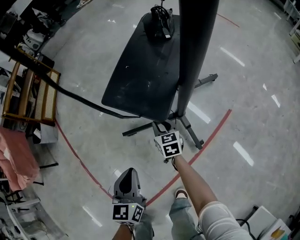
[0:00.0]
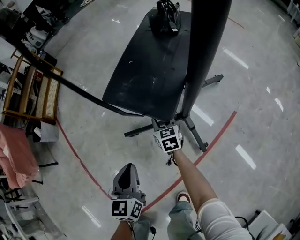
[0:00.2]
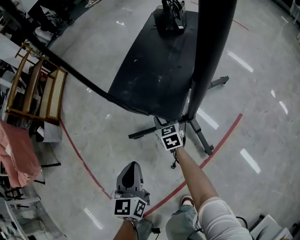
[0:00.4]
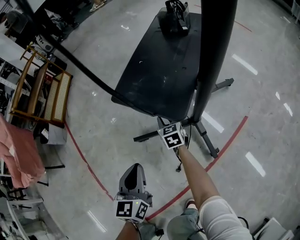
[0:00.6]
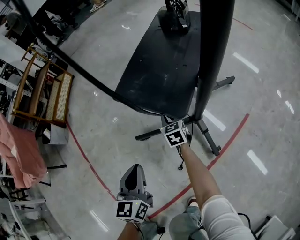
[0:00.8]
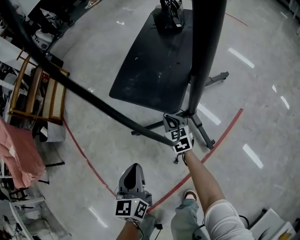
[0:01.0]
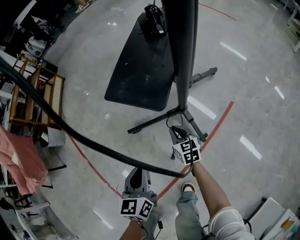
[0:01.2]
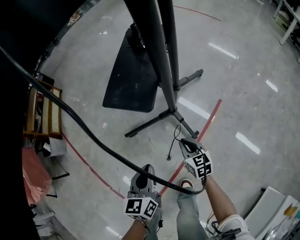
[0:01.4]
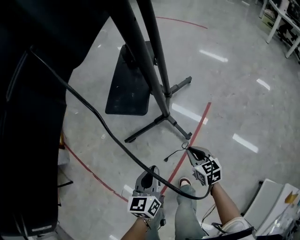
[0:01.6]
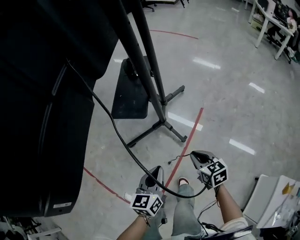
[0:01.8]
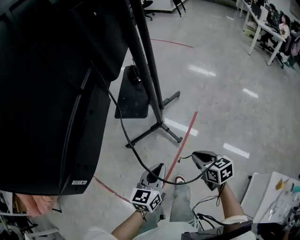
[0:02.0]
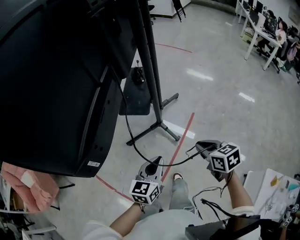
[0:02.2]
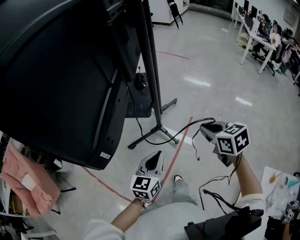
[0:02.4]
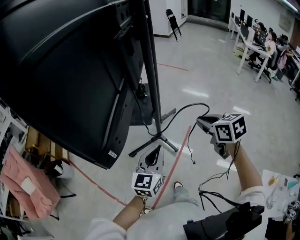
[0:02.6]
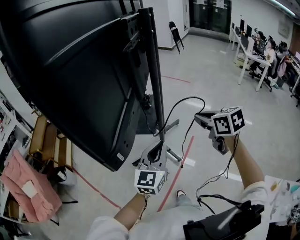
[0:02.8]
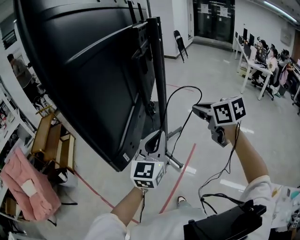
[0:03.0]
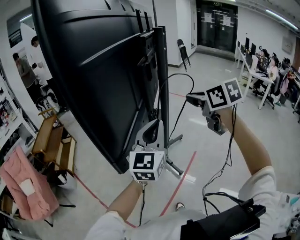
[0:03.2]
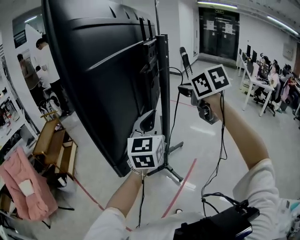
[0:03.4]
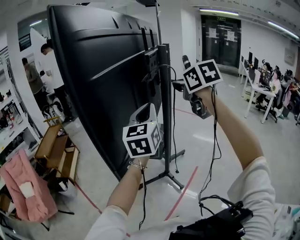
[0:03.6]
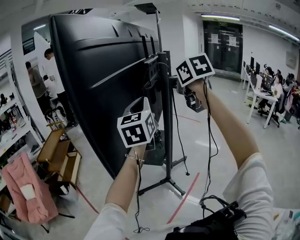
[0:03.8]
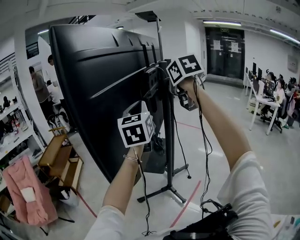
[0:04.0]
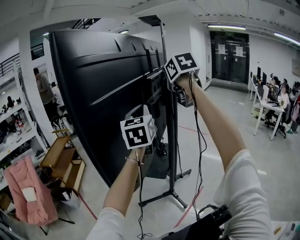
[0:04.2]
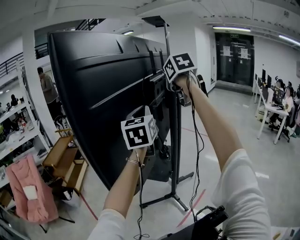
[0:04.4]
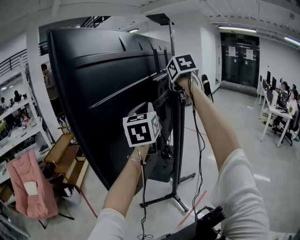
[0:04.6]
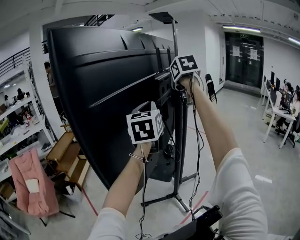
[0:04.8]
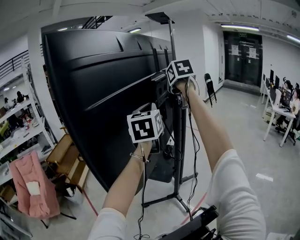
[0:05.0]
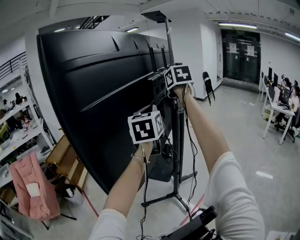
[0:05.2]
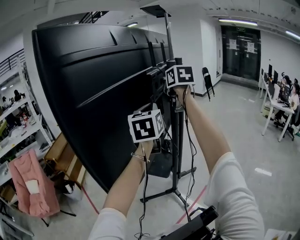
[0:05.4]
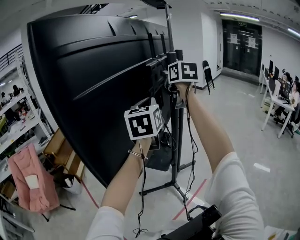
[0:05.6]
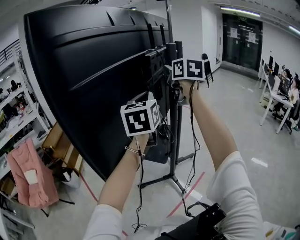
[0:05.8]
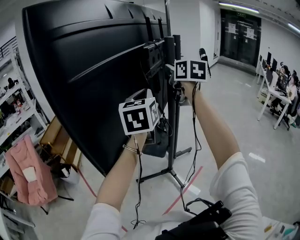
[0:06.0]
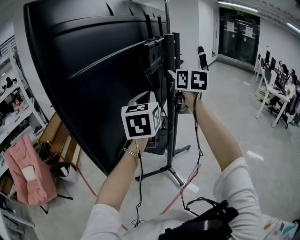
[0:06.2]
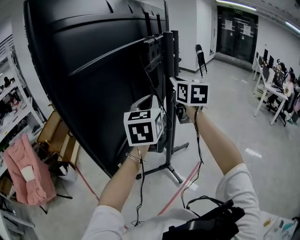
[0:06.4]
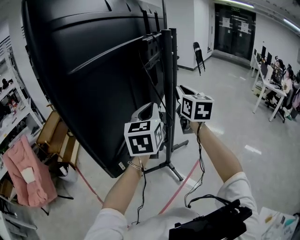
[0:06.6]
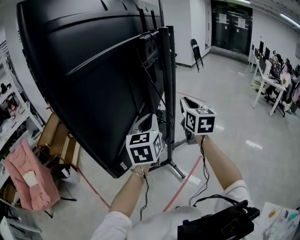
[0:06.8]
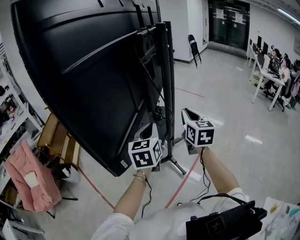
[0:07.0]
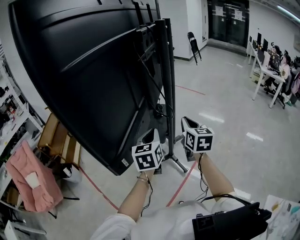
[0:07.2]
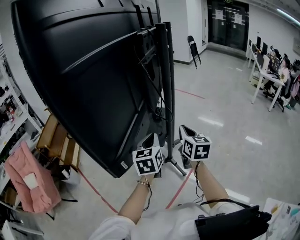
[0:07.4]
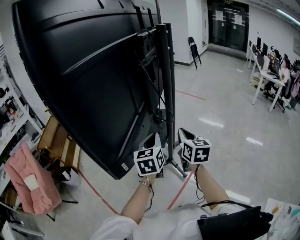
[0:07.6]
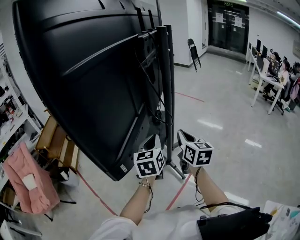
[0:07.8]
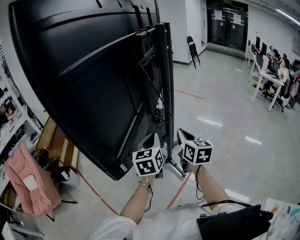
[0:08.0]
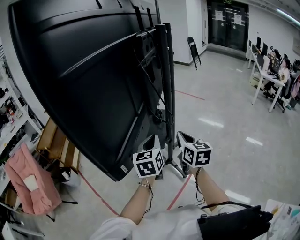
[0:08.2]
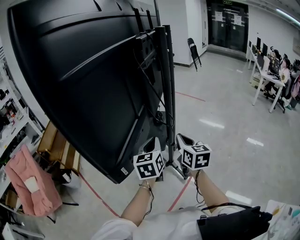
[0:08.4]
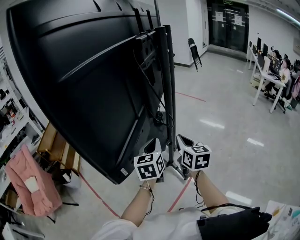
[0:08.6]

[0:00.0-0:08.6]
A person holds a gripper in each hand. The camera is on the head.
0:00.0 to 0:01.4: The right gripper goes approximately 20 cm backward, upward and to the right; the left gripper goes approximately 10 cm to the right, upward and backward.
0:01.4 to 0:02.8: The grippers both shift upward by some 60 cm. The left gripper rotates some 40 degrees.
0:02.8 to 0:04.4: The grippers both shift upward and forward by about 40 cm. The left gripper turns by about 30 degrees.
0:04.4 to 0:05.8: The left gripper changes place by roughly 5 cm. The right gripper shifts about 5 cm downward, and turns by about 20 degrees.
0:05.8 to 0:07.2: The right gripper is displaced downward and backward by about 35 cm. Meanwhile the left gripper moves downward, roughly 25 cm.
0:07.2 to 0:08.6: There are only small adjustments of the grippers.

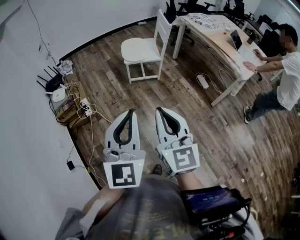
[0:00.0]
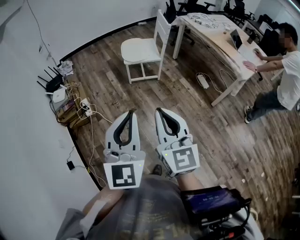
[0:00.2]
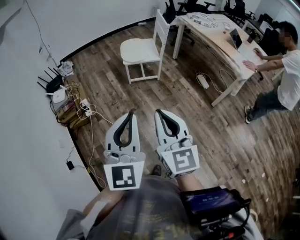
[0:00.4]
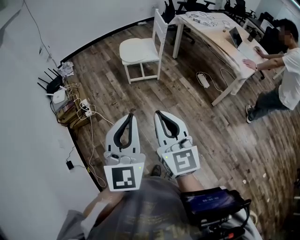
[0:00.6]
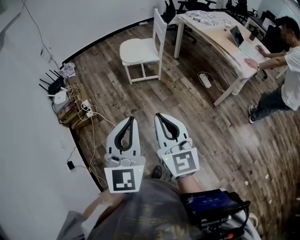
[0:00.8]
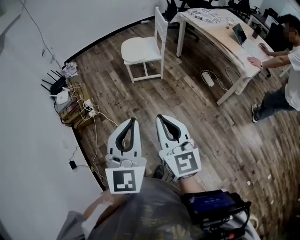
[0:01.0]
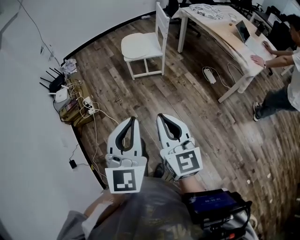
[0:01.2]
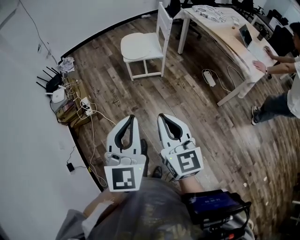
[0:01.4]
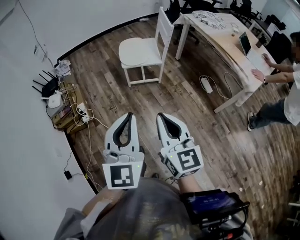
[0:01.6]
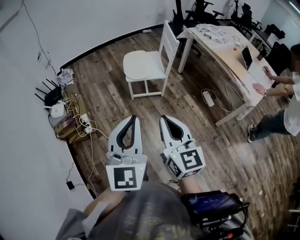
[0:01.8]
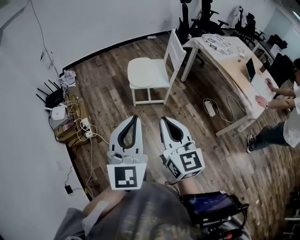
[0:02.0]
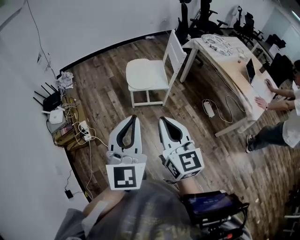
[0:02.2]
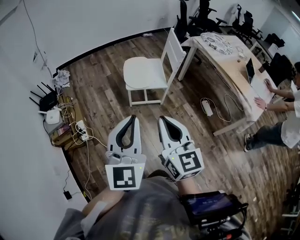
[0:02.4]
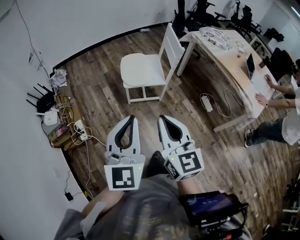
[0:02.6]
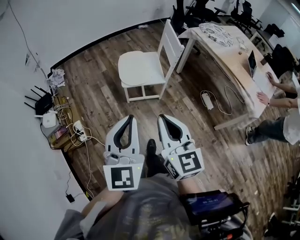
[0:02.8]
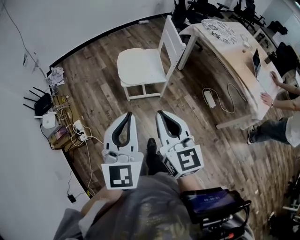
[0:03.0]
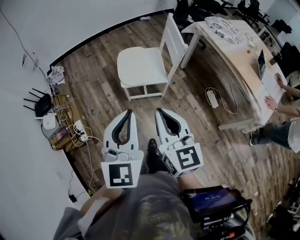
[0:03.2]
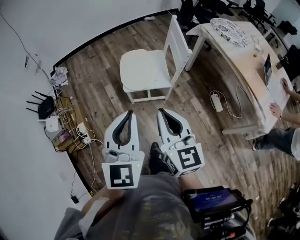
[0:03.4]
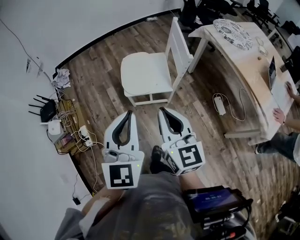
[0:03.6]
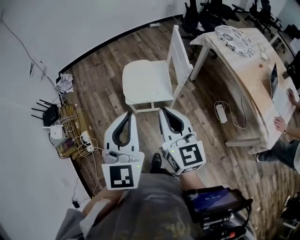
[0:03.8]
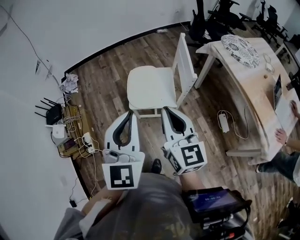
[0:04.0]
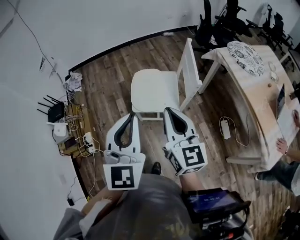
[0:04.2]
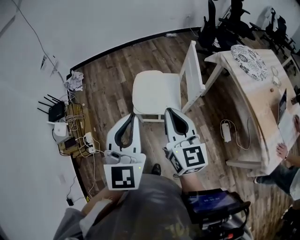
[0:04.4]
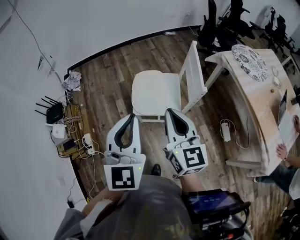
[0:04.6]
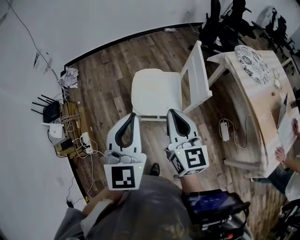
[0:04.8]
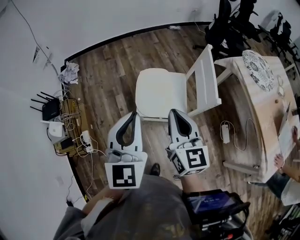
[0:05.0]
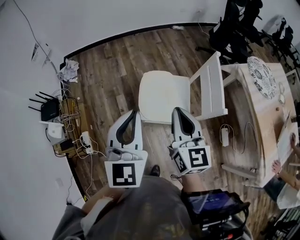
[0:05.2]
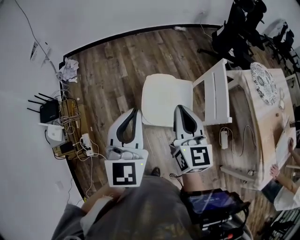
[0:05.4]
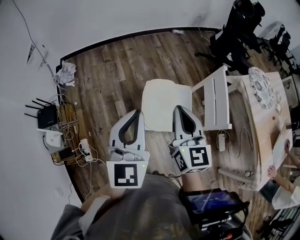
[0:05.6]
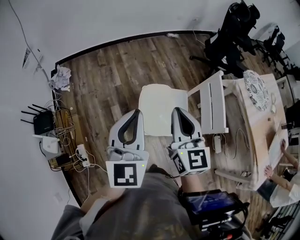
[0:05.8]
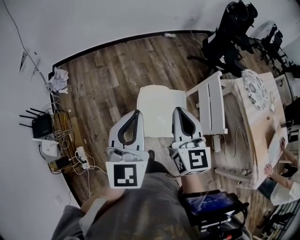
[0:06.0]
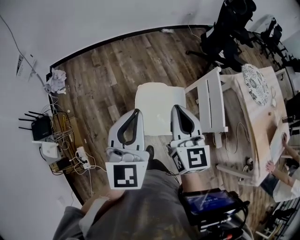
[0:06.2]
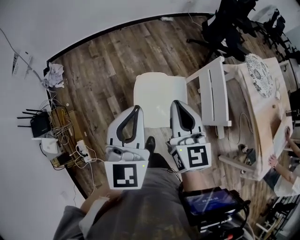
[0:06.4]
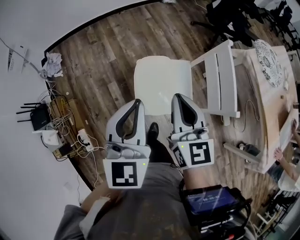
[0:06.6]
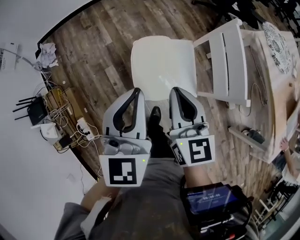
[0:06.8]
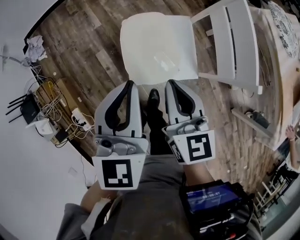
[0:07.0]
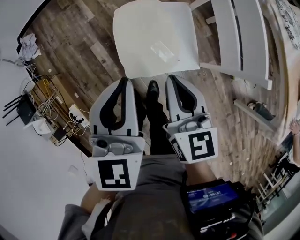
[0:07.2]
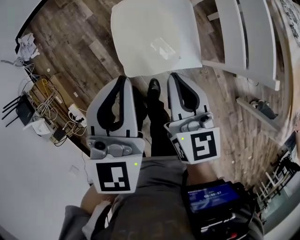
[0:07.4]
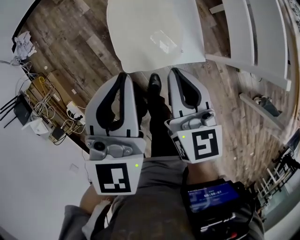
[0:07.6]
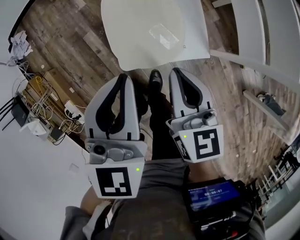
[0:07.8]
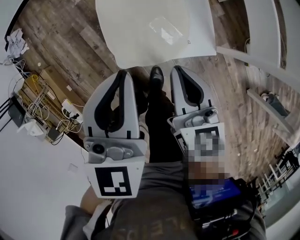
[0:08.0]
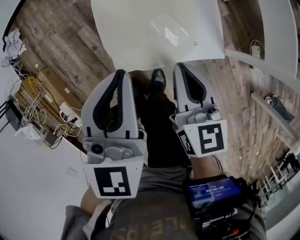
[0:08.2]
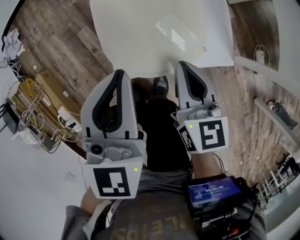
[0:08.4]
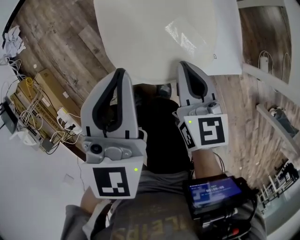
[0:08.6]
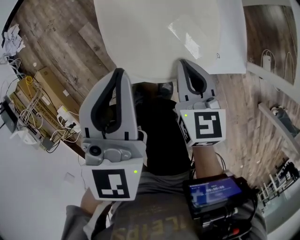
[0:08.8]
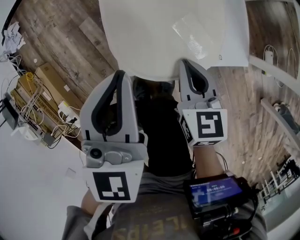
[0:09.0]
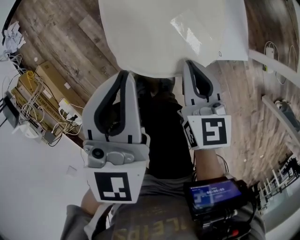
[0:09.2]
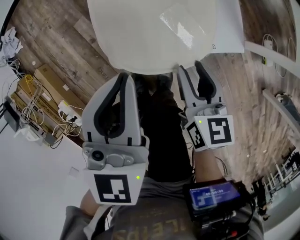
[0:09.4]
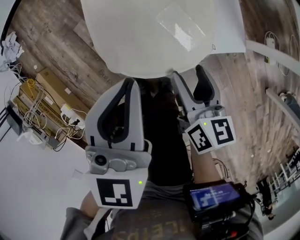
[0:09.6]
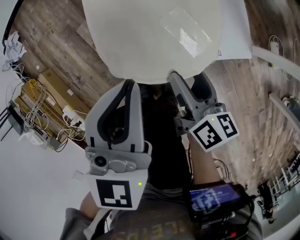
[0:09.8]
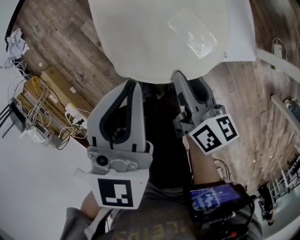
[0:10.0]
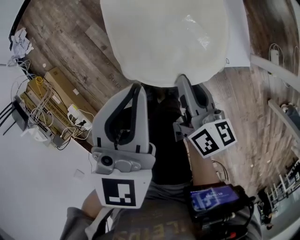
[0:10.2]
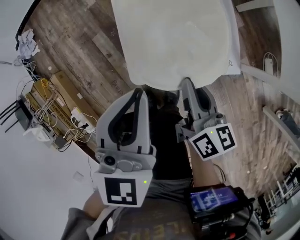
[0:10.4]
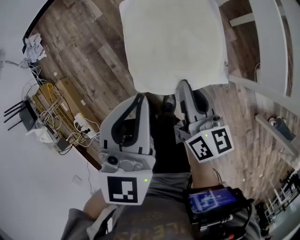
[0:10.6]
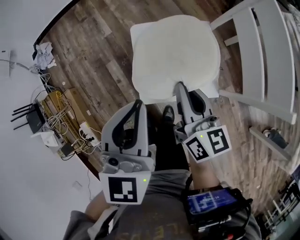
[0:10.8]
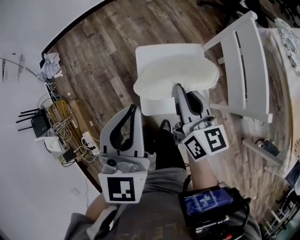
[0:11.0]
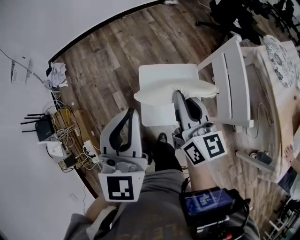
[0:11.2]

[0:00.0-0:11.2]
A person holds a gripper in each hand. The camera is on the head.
0:00.0 to 0:01.6: The left gripper moves forward, some 10 cm. The right gripper travels forward, to the right and downward by approximately 15 cm.
0:01.6 to 0:03.2: The grippers both shift forward by some 30 cm.
0:03.2 to 0:04.8: Both grippers move forward, approximately 20 cm.
0:04.8 to 0:06.4: The grippers both shift forward and to the left by about 20 cm.
0:06.4 to 0:08.0: The two grippers go some 30 cm downward. The right gripper rotates roughly 20 degrees.
0:08.0 to 0:09.6: The grippers both shift downward by about 15 cm. The right gripper rotates roughly 20 degrees, and opens its fingers.
0:09.6 to 0:11.2: Both grippers move upward, about 35 cm. The right gripper rotates approximately 30 degrees, and closes; the left gripper turns by some 20 degrees.

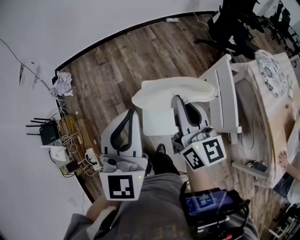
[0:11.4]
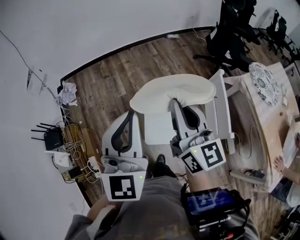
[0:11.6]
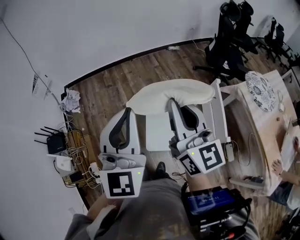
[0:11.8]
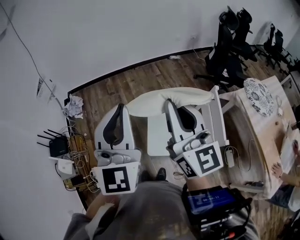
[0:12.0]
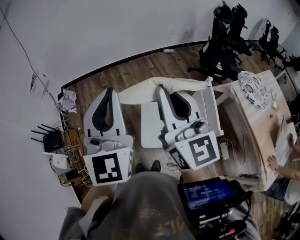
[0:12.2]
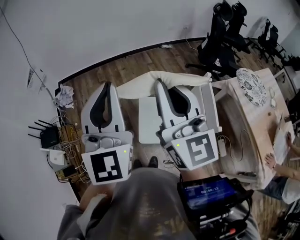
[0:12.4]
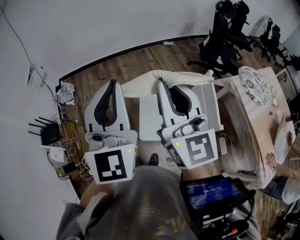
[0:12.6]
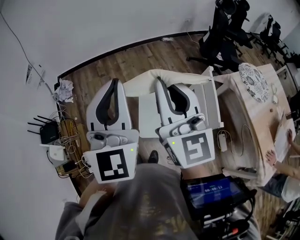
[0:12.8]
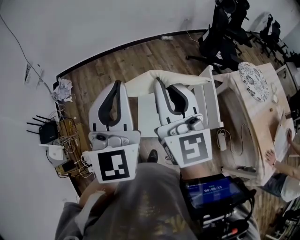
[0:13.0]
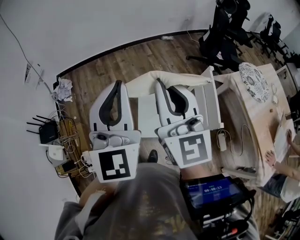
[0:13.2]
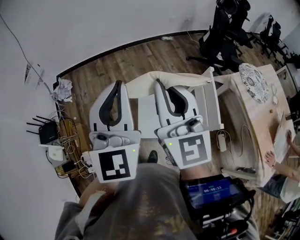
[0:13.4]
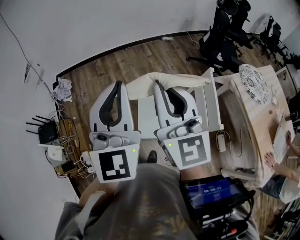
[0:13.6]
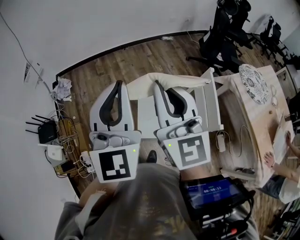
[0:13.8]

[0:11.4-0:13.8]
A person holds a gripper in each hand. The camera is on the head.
0:11.4 to 0:12.6: Both grippers move upward, some 20 cm. The right gripper turns by some 30 degrees.
0:12.6 to 0:13.8: There are only small adjustments of the grippers.

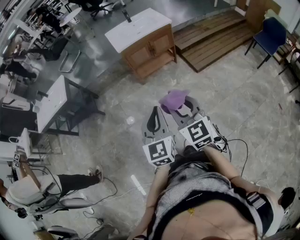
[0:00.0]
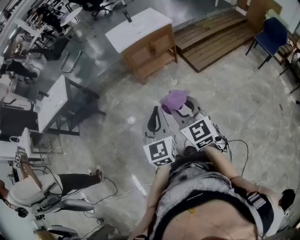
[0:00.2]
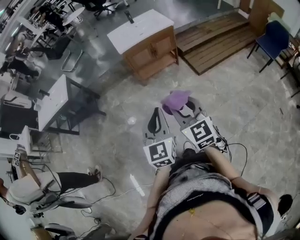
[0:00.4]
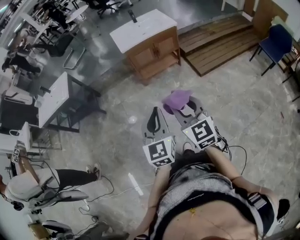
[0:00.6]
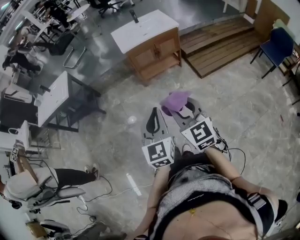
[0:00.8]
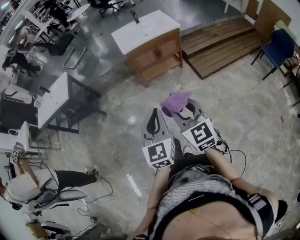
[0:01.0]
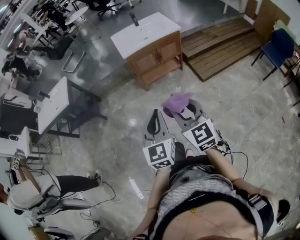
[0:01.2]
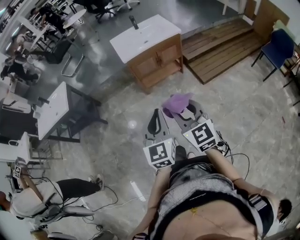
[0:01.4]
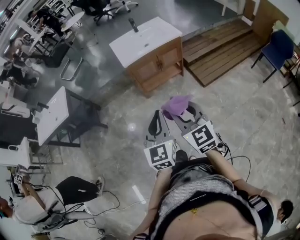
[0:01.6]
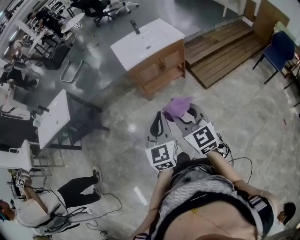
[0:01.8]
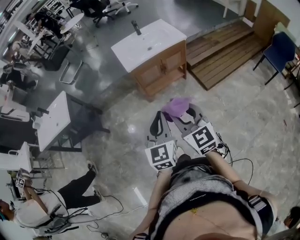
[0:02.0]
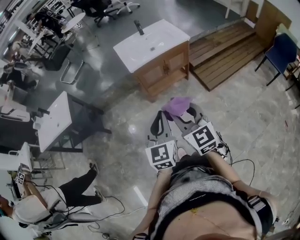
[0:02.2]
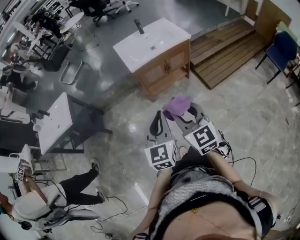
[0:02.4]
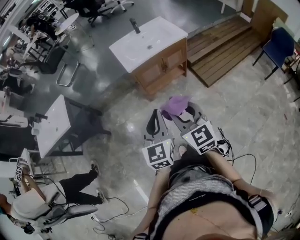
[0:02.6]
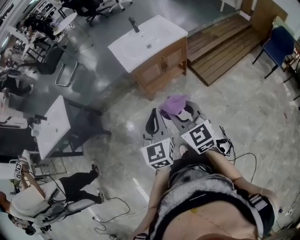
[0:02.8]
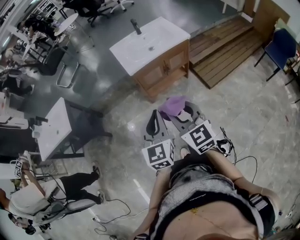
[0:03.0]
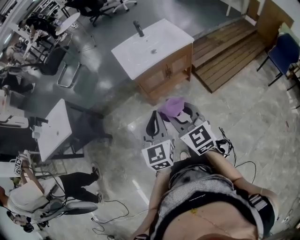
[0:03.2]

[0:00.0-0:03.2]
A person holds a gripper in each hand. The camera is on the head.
0:00.0 to 0:01.6: Both grippers move forward, about 15 cm.
0:01.6 to 0:03.2: The two grippers go about 15 cm forward.
